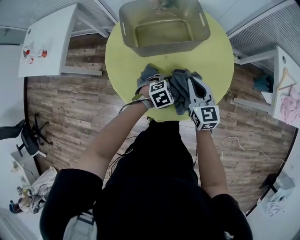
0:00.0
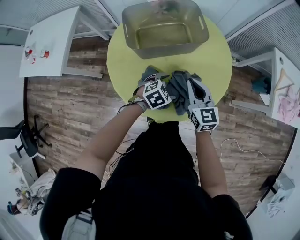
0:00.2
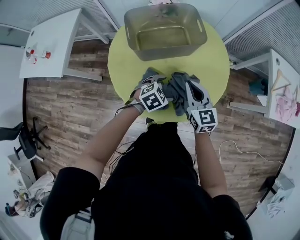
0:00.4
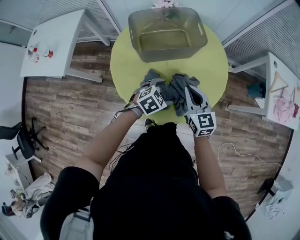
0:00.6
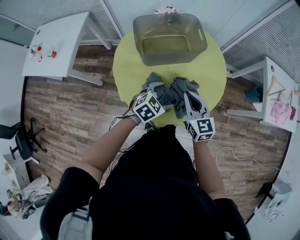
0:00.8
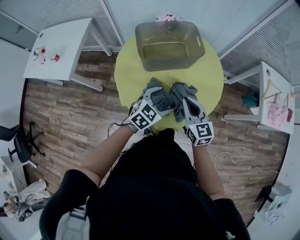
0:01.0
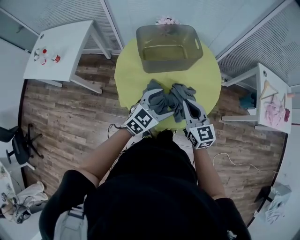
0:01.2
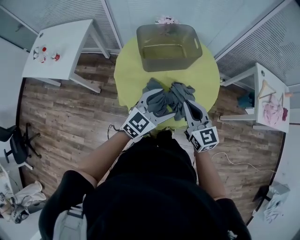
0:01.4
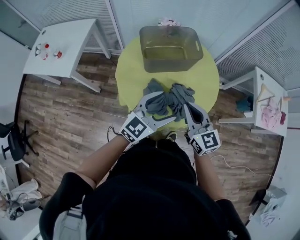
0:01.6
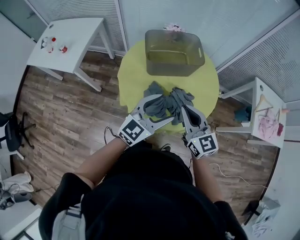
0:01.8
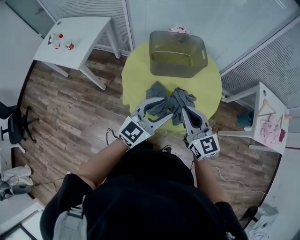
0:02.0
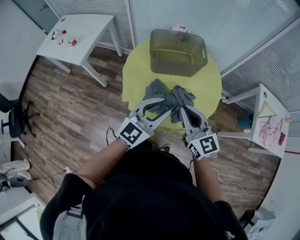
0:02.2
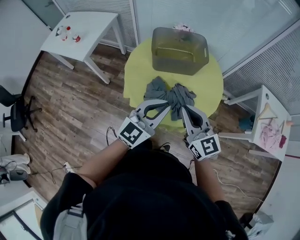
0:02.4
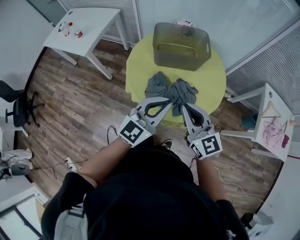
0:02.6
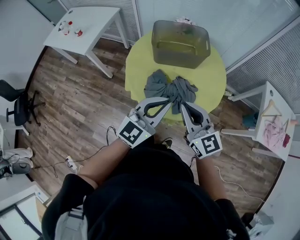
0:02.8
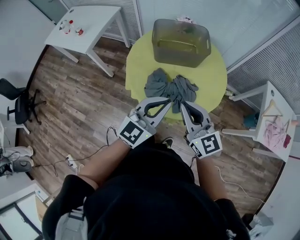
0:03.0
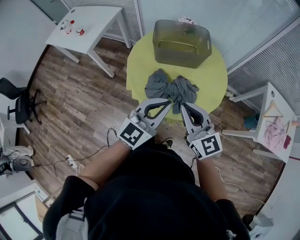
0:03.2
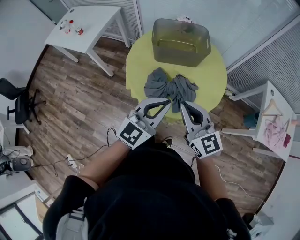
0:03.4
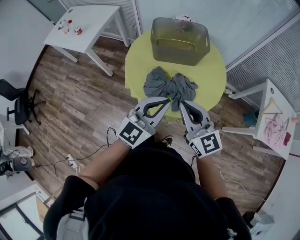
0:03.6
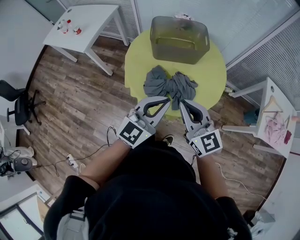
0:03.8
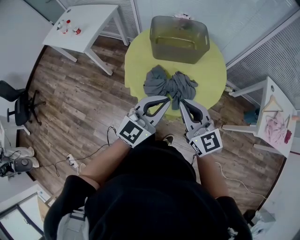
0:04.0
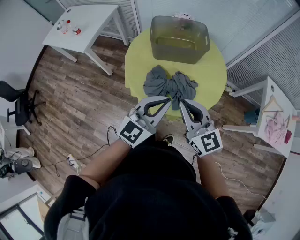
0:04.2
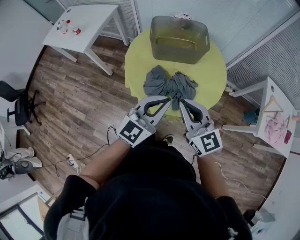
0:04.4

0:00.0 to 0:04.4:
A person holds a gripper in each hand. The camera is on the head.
0:00.0 to 0:01.4: The left gripper travels upward by approximately 30 cm, and angles its fingers upward, by about 50 degrees. Meanwhile the right gripper is displaced upward and backward by about 20 cm.
0:01.4 to 0:03.0: Both grippers move backward and upward, roughly 10 cm. The left gripper turns by some 20 degrees, and closes its fingers. Meanwhile the right gripper turns by approximately 20 degrees.
0:03.0 to 0:04.4: Both grippers stay about where they are.

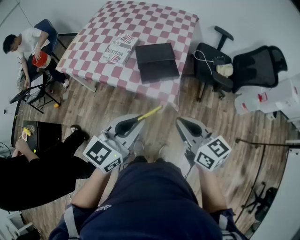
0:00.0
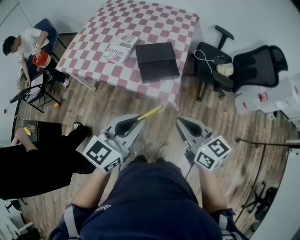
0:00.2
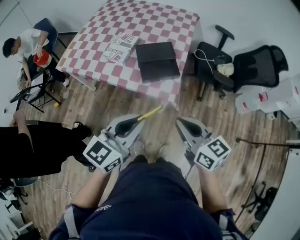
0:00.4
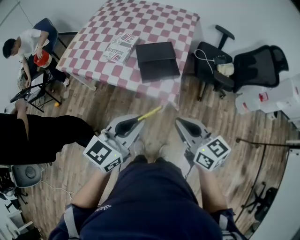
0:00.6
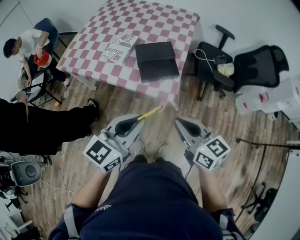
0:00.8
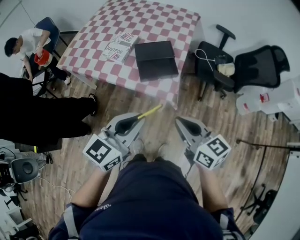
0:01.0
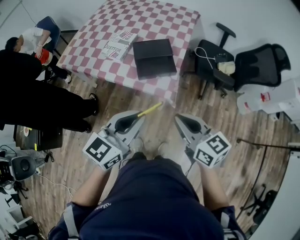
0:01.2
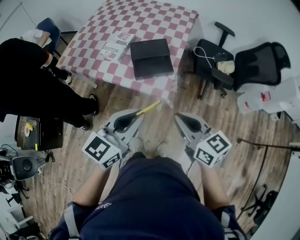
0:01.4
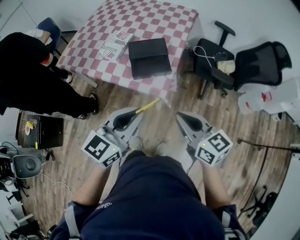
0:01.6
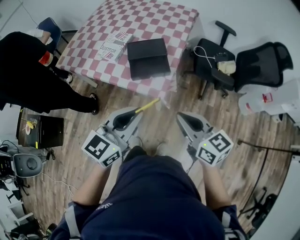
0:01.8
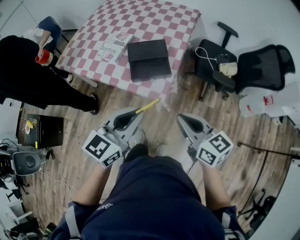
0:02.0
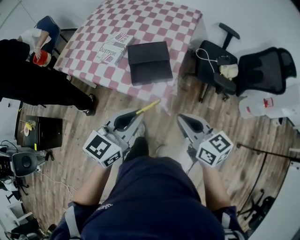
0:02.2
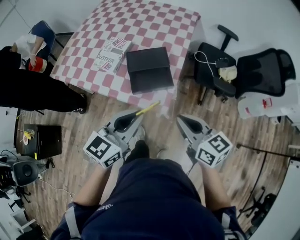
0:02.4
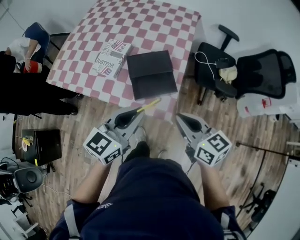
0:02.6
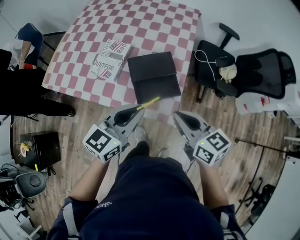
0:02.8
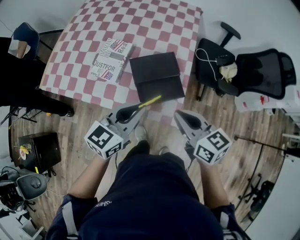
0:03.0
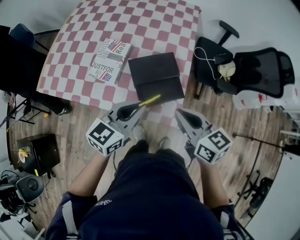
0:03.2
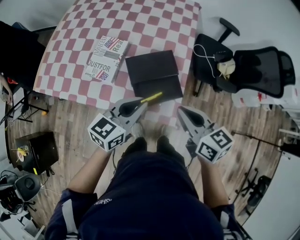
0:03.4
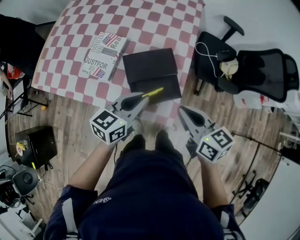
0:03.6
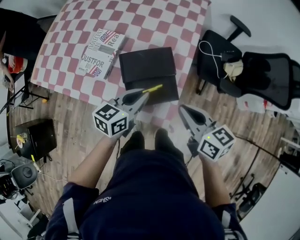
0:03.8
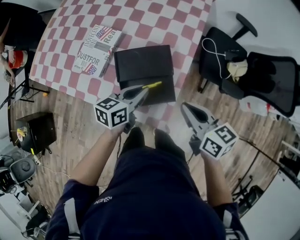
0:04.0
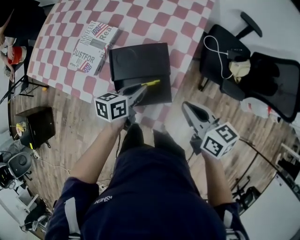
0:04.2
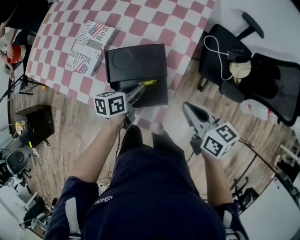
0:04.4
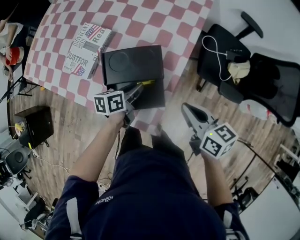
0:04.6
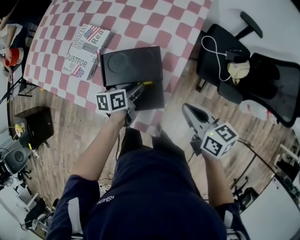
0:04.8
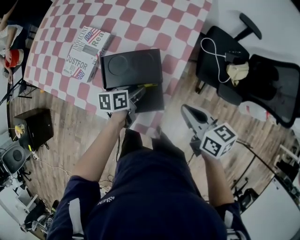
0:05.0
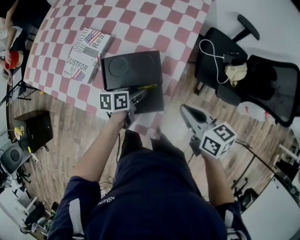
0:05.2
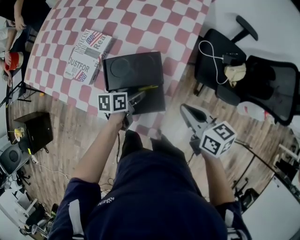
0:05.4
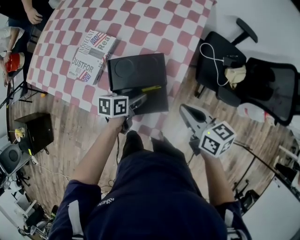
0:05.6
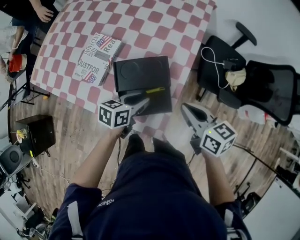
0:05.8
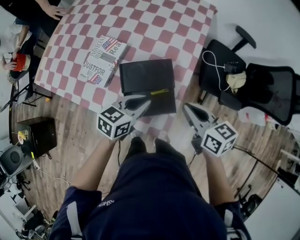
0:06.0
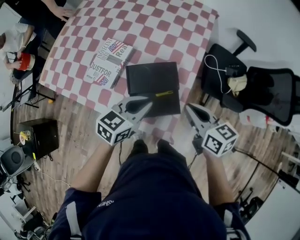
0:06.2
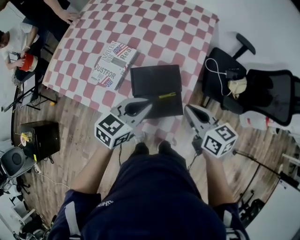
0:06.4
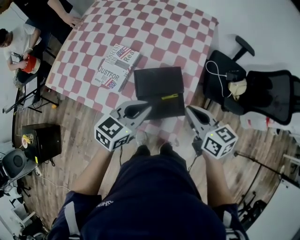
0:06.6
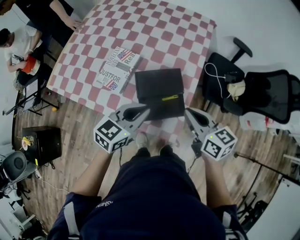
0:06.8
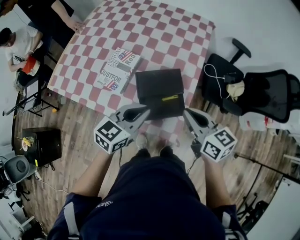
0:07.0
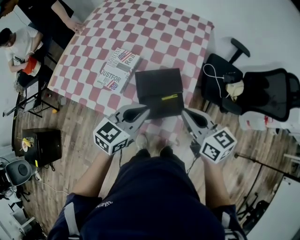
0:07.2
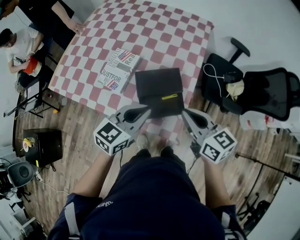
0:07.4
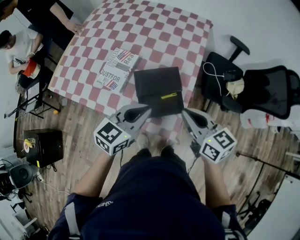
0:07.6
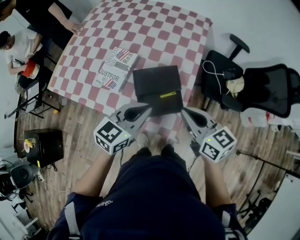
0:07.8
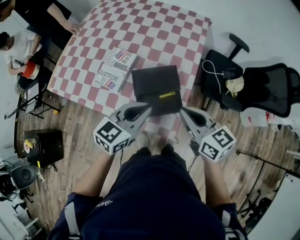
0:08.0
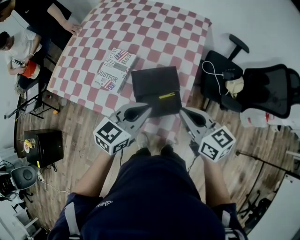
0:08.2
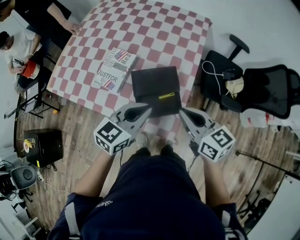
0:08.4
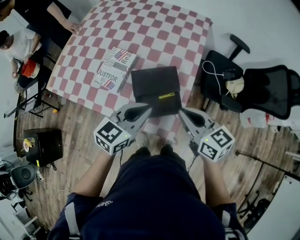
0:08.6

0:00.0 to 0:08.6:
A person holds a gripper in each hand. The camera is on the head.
0:00.0 to 0:01.4: The left gripper moves to the right, about 5 cm.
0:01.4 to 0:02.8: The two grippers go about 20 cm forward.
0:02.8 to 0:04.4: The left gripper travels downward and forward by roughly 30 cm, and twists roughly 40 degrees counterclockwise, seen from behind, while the right gripper is displaced forward, to the right and downward by roughly 20 cm.
0:04.4 to 0:05.8: The left gripper opens.
0:05.8 to 0:07.2: The left gripper shifts some 15 cm upward, swivels roughly 30 degrees, and closes; the right gripper travels upward, to the left and backward by roughly 15 cm.
0:07.2 to 0:08.6: There are only small adjustments of the grippers.

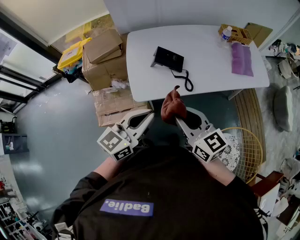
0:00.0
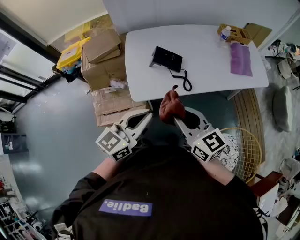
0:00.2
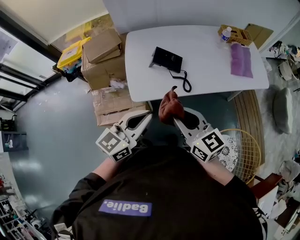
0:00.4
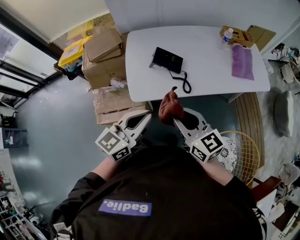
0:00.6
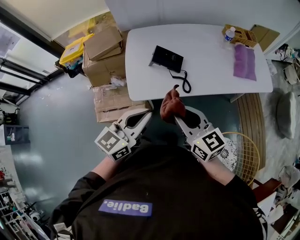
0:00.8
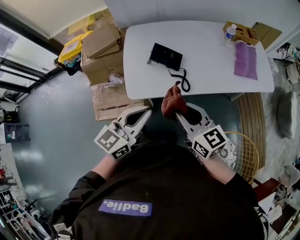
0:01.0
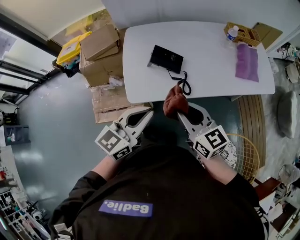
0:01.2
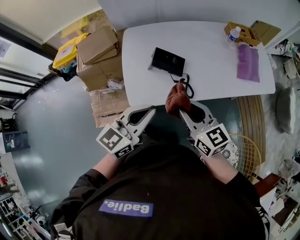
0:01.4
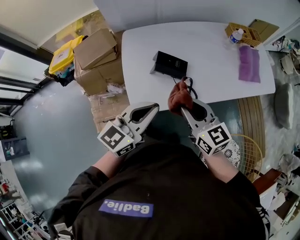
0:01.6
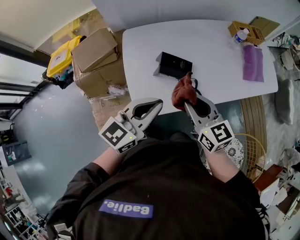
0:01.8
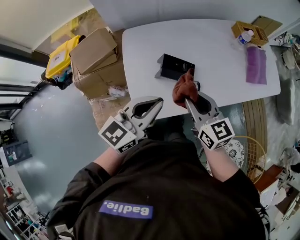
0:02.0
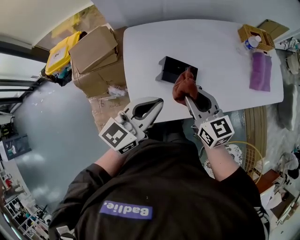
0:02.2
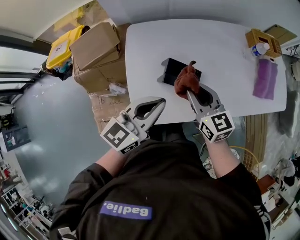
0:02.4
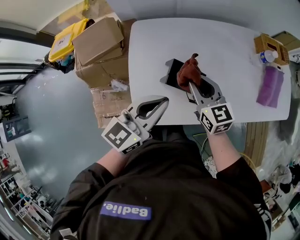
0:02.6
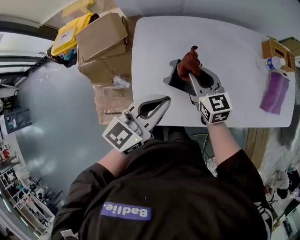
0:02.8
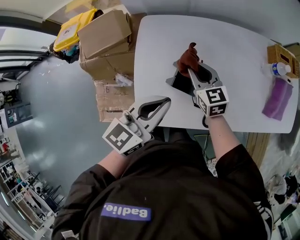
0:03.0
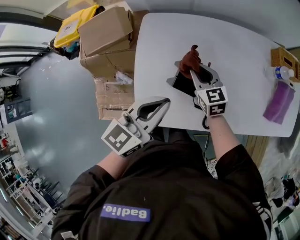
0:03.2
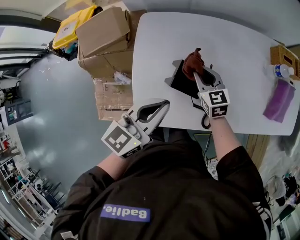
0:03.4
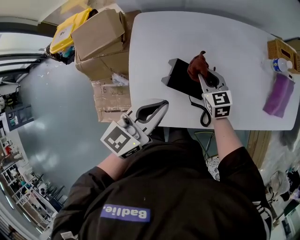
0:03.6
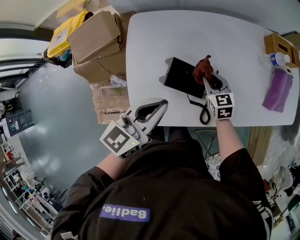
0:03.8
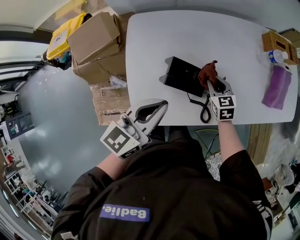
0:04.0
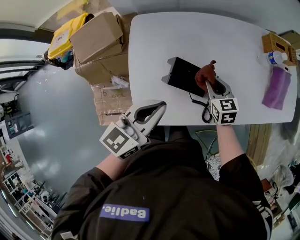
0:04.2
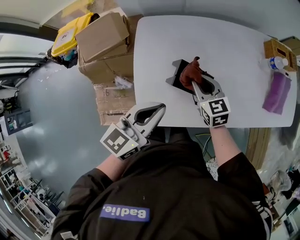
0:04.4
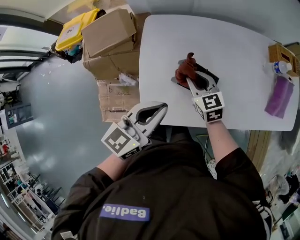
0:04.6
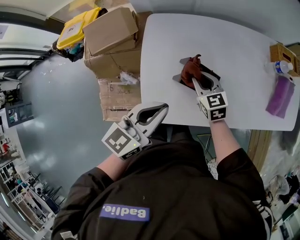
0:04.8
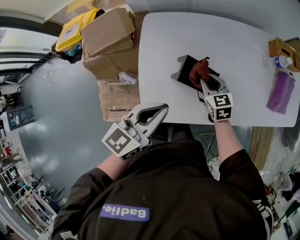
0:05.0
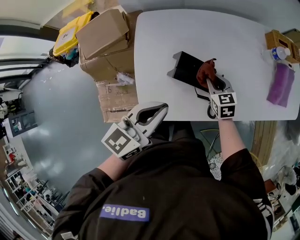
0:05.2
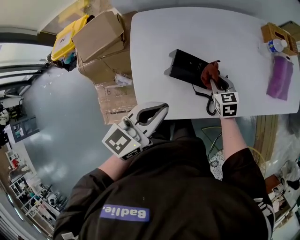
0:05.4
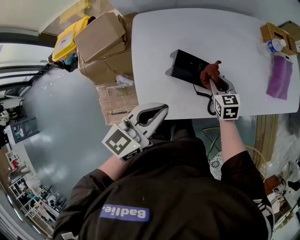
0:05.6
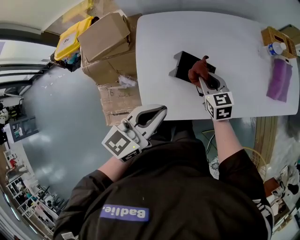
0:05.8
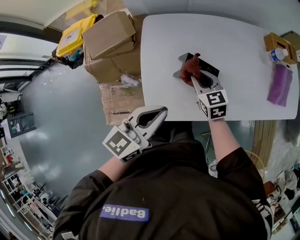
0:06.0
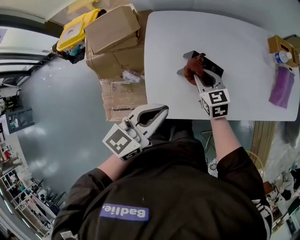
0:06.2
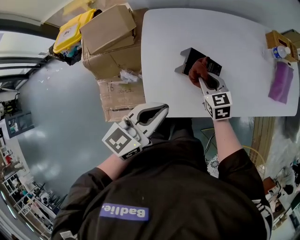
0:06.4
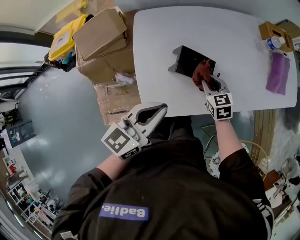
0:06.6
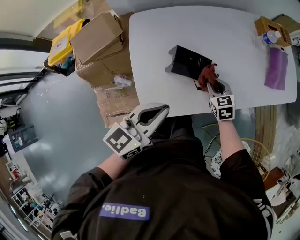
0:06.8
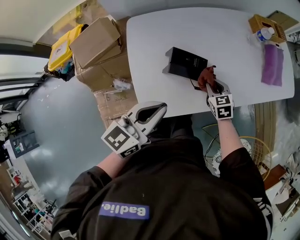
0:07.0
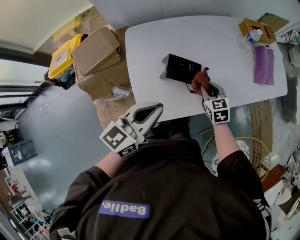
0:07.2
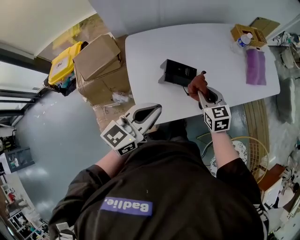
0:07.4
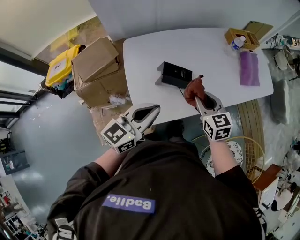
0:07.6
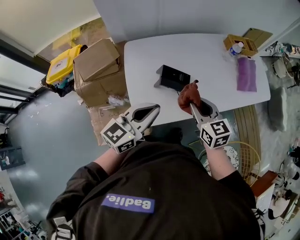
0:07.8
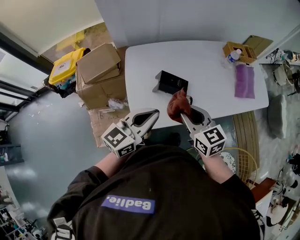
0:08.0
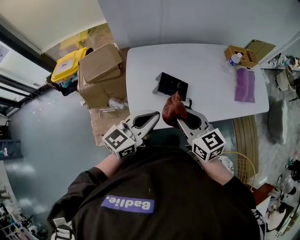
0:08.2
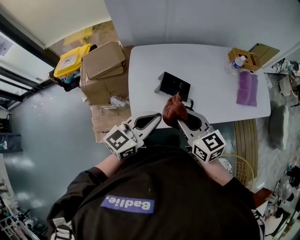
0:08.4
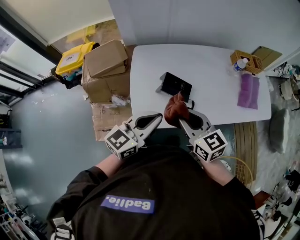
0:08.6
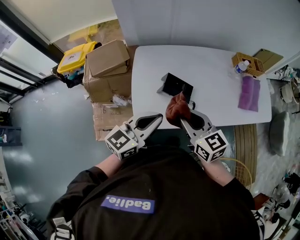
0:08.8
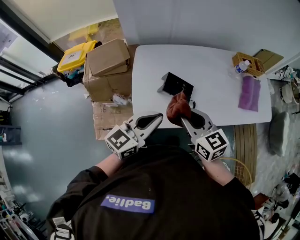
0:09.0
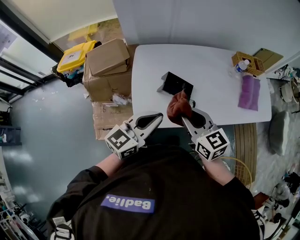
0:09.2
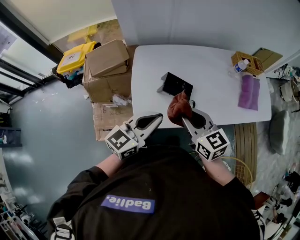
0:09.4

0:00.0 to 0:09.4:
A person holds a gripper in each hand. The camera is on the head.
0:00.0 to 0:01.6: The grippers both shift forward by approximately 15 cm.
0:01.6 to 0:03.2: The right gripper heads forward and downward, covering some 30 cm. Meanwhile the left gripper heads forward and downward, covering approximately 15 cm.
0:03.2 to 0:04.8: The right gripper travels backward by about 5 cm, and travels to the right and back again, roughly 15 cm each way. The left gripper shifts by approximately 5 cm.
0:04.8 to 0:06.2: The right gripper goes to the right and returns, approximately 15 cm each way.
0:06.2 to 0:07.8: The left gripper moves upward, some 5 cm. The right gripper is displaced upward, backward and to the right by approximately 20 cm.
0:07.8 to 0:09.4: The right gripper ends up about 5 cm from where it was.

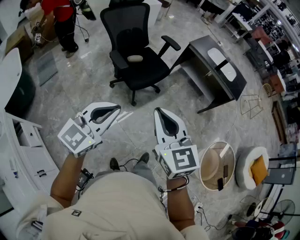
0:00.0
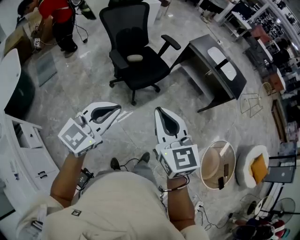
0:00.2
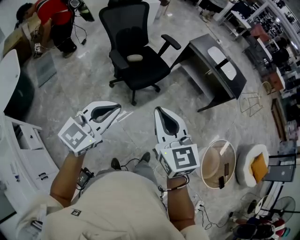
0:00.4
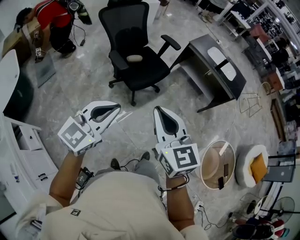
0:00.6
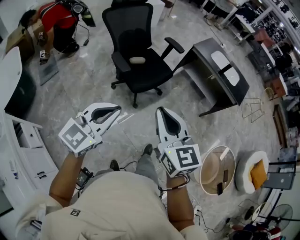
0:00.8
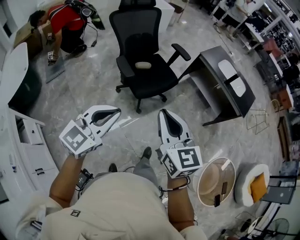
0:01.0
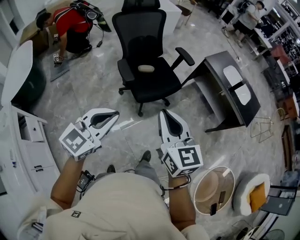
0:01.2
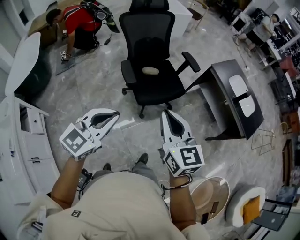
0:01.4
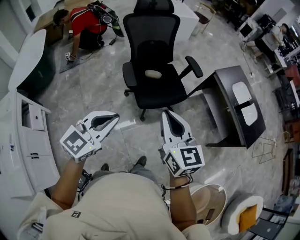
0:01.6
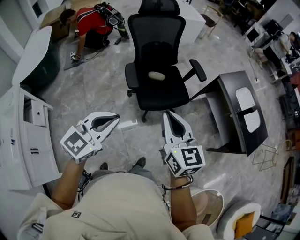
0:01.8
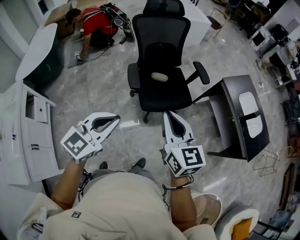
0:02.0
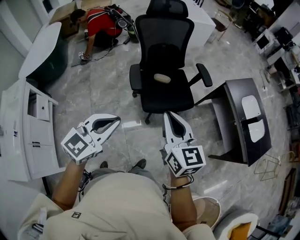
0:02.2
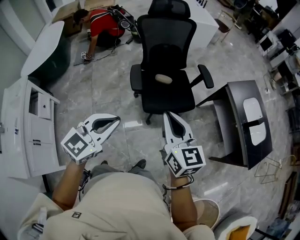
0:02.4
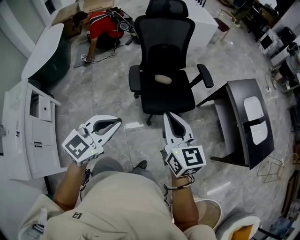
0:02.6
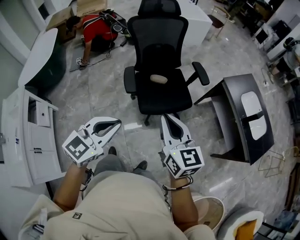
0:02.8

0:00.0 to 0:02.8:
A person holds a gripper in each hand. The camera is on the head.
0:00.0 to 0:01.4: The two grippers go about 15 cm forward.
0:01.4 to 0:02.8: The right gripper travels forward and to the right by some 10 cm. The left gripper heads to the right and forward, covering about 10 cm.
